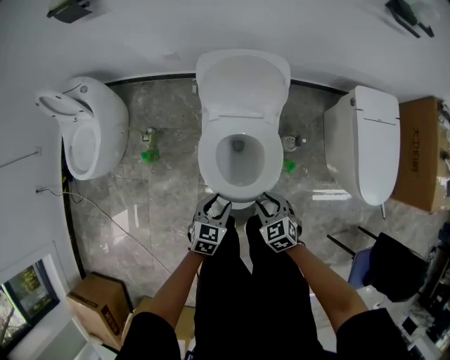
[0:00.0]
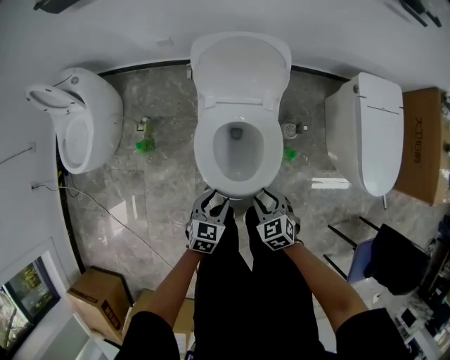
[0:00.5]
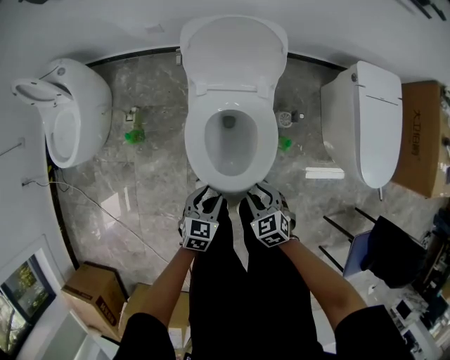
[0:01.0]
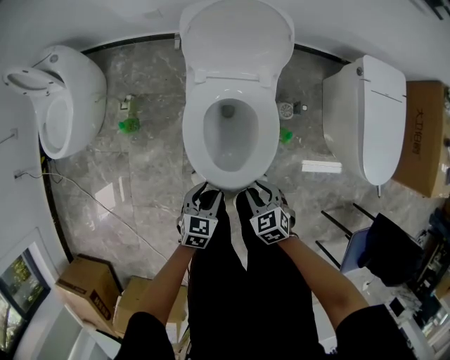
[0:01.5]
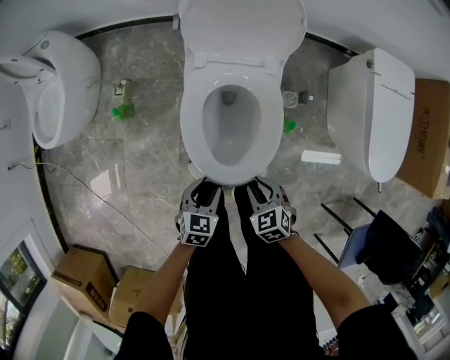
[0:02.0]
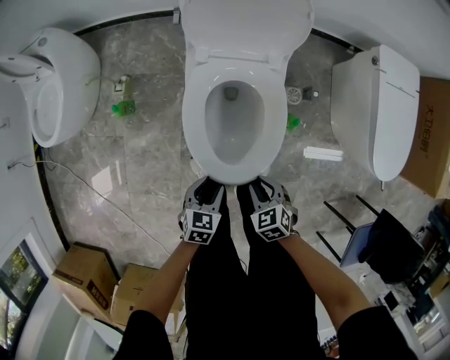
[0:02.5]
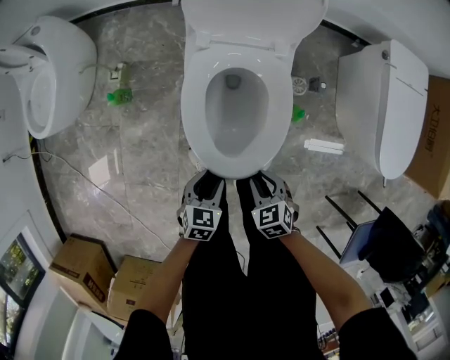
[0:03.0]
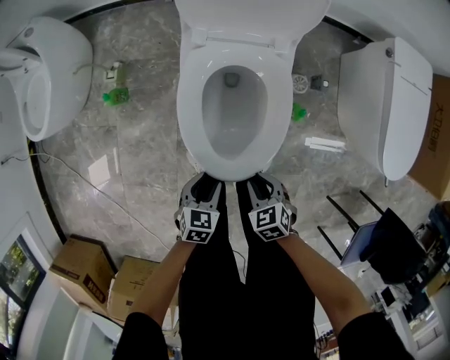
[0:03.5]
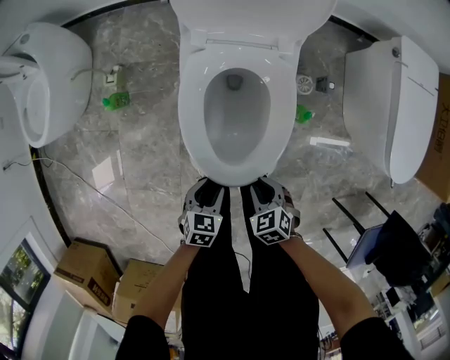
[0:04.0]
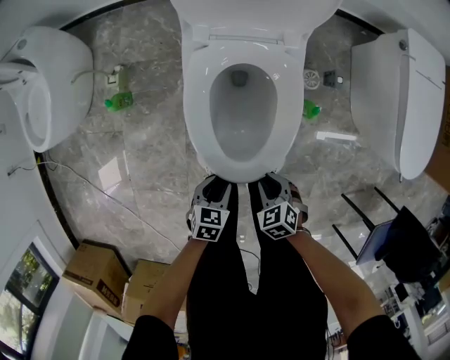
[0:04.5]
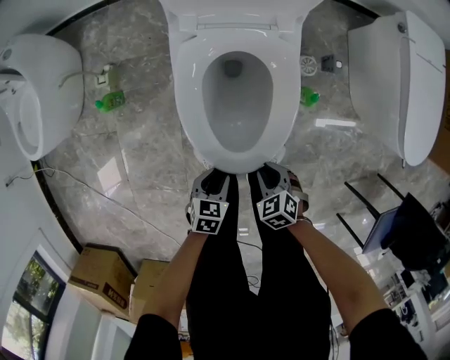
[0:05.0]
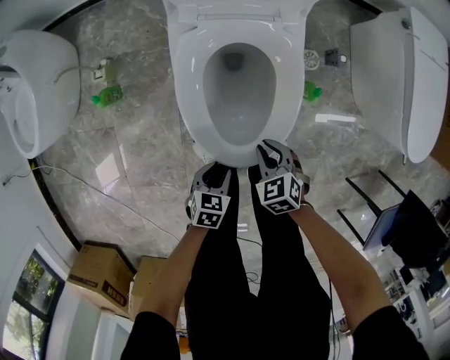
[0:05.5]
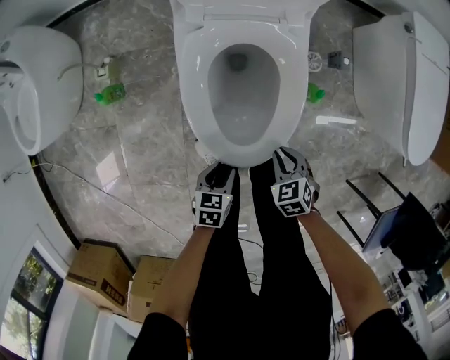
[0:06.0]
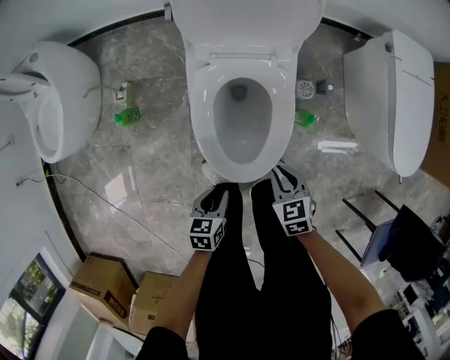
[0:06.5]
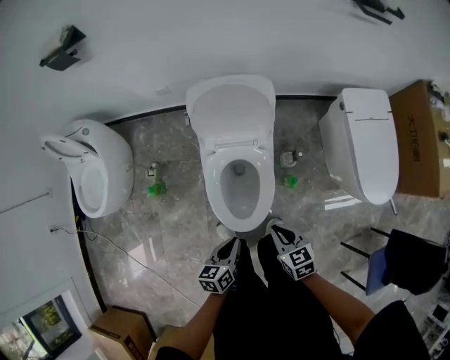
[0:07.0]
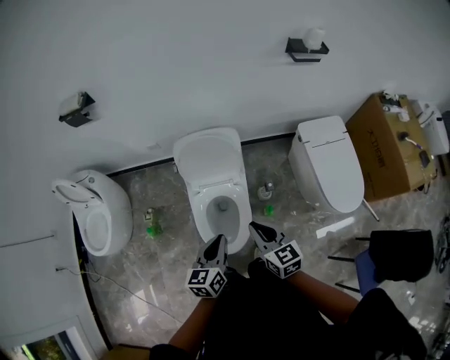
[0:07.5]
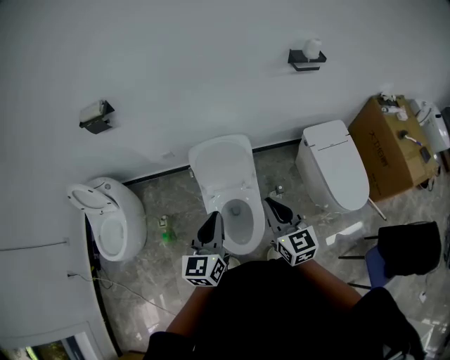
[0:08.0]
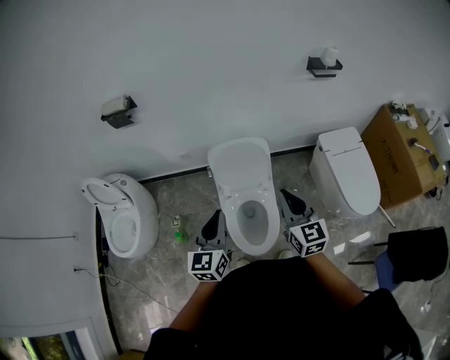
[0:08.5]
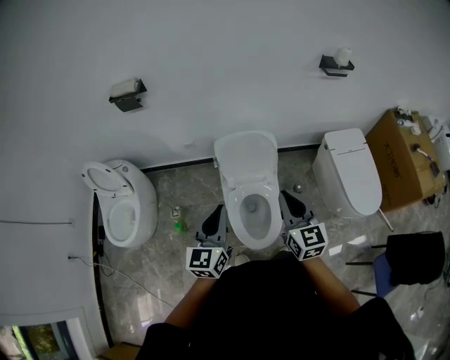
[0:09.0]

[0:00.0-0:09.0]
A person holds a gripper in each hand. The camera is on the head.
0:00.0 to 0:02.0: The grippers both shift downward and backward by approximately 15 cm.
0:02.0 to 0:04.5: The grippers both shift downward by approximately 15 cm.
0:04.5 to 0:07.0: Both grippers move upward, some 30 cm. The right gripper swivels roughly 30 degrees, while the left gripper rotates approximately 30 degrees, and closes its fingers.
0:07.0 to 0:09.0: Both grippers move upward, some 35 cm. The right gripper tilts its fingers roughly 30 degrees upward. Meanwhile the left gripper rotates approximately 40 degrees.
